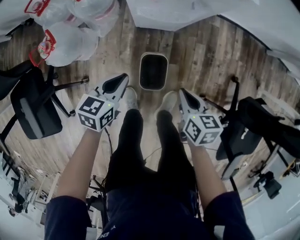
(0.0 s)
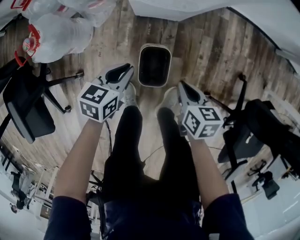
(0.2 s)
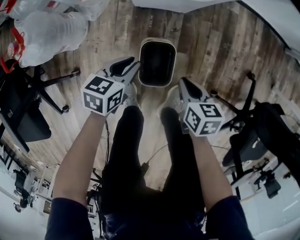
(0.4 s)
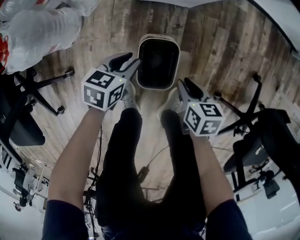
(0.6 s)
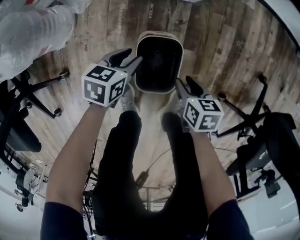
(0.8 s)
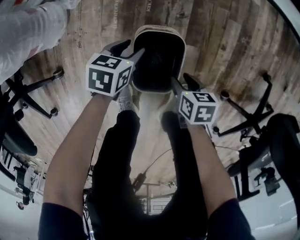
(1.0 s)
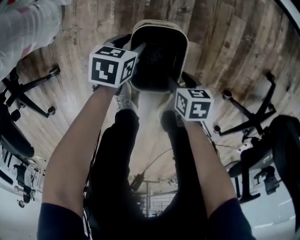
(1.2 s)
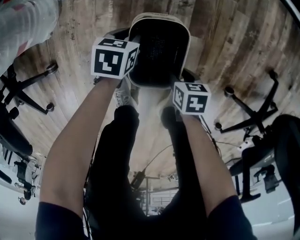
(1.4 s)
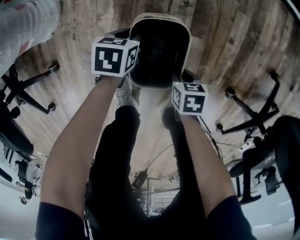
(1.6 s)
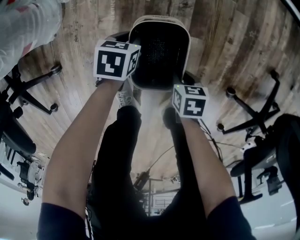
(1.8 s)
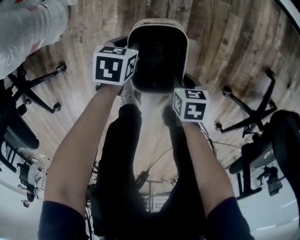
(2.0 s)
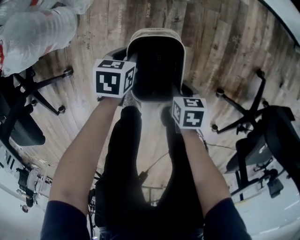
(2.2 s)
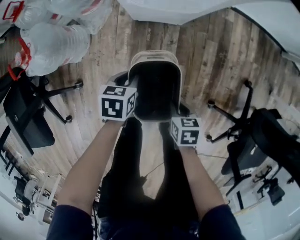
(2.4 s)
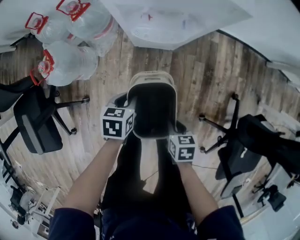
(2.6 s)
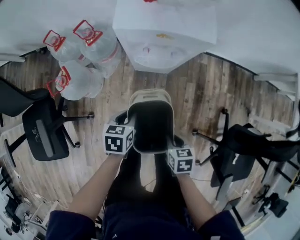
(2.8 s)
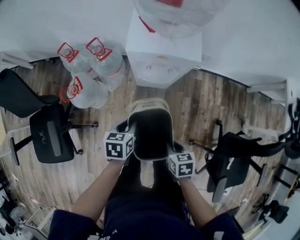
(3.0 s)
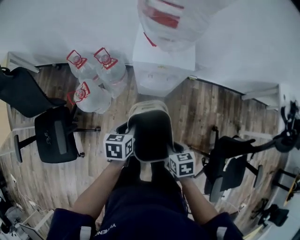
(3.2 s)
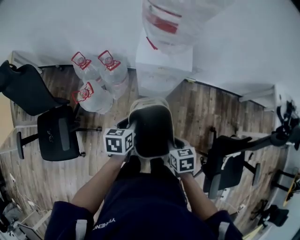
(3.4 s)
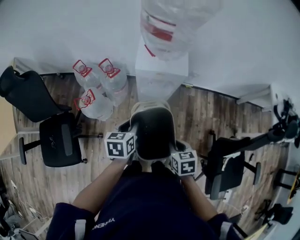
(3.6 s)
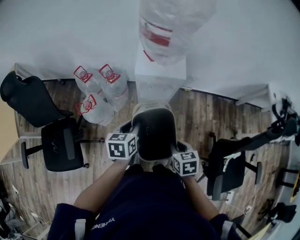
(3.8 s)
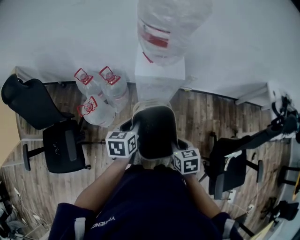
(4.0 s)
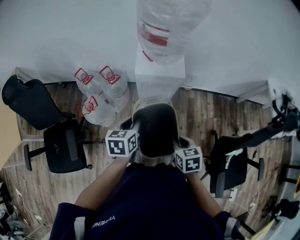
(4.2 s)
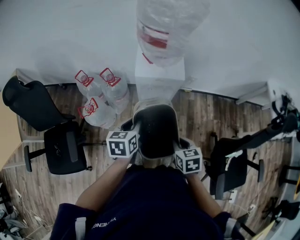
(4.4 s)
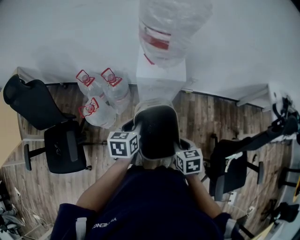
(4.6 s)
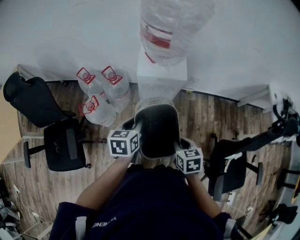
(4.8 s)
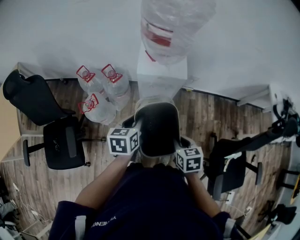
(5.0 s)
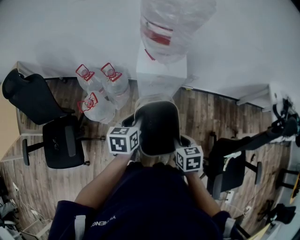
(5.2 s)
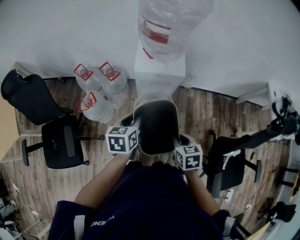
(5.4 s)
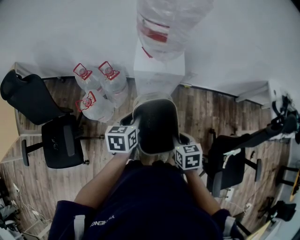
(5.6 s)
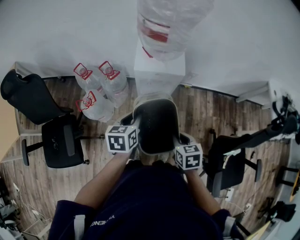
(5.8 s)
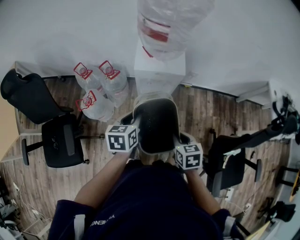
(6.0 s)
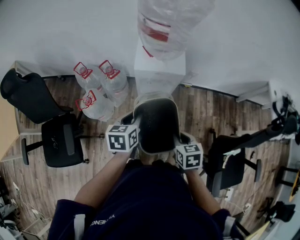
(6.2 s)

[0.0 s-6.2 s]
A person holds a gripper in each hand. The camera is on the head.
0.0 to 1.6 s: The two grippers go some 50 cm downward. The right gripper changes its angle by roughly 30 degrees, and opens and closes again, while the left gripper turns by approximately 30 degrees, and opens, then closes once more.
1.6 to 3.2 s: Both grippers move upward, approximately 70 cm. The right gripper rotates approximately 20 degrees; the left gripper swivels approximately 20 degrees.
3.2 to 4.6 s: The grippers both shift upward by some 15 cm.
4.6 to 6.2 s: The grippers move only a little.

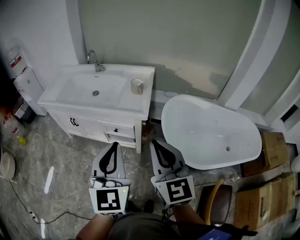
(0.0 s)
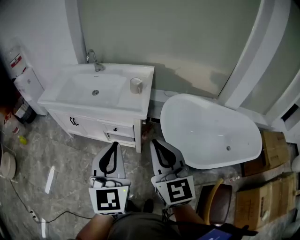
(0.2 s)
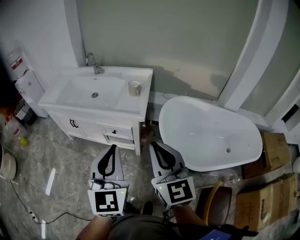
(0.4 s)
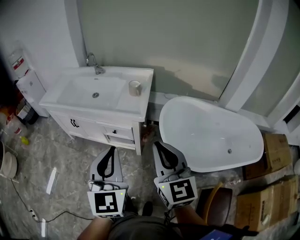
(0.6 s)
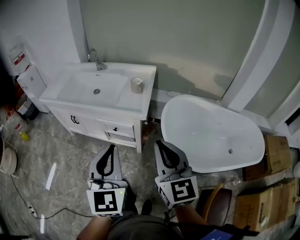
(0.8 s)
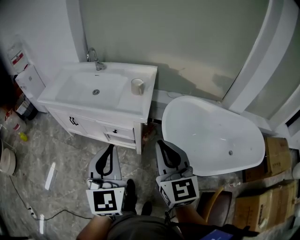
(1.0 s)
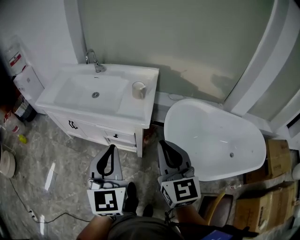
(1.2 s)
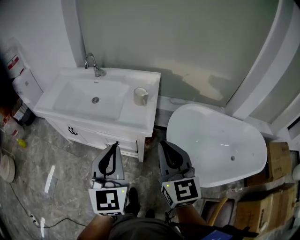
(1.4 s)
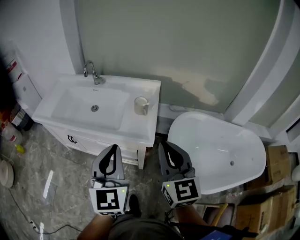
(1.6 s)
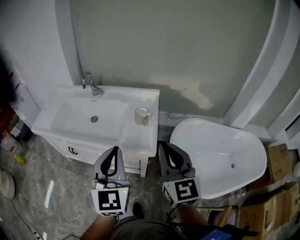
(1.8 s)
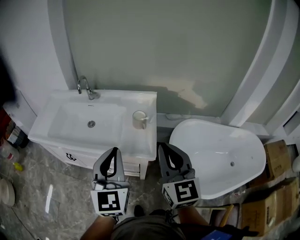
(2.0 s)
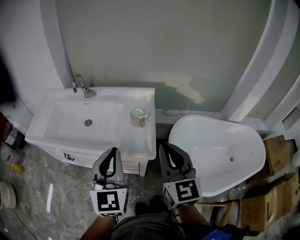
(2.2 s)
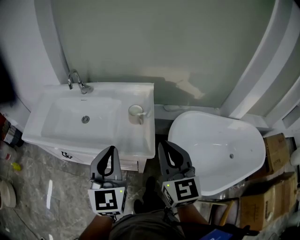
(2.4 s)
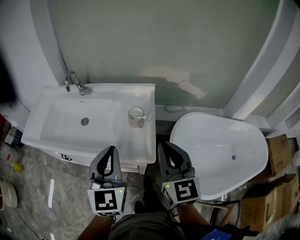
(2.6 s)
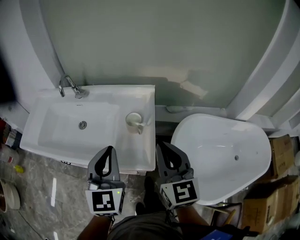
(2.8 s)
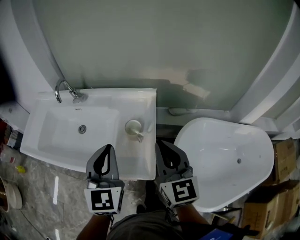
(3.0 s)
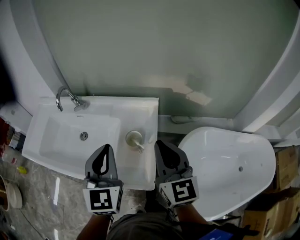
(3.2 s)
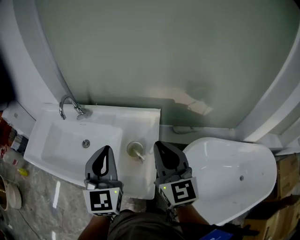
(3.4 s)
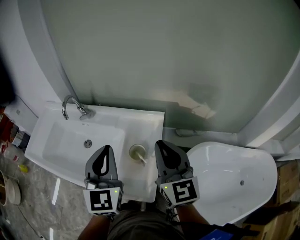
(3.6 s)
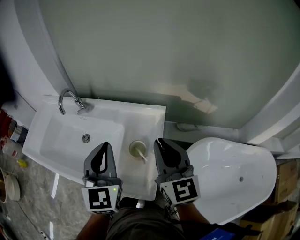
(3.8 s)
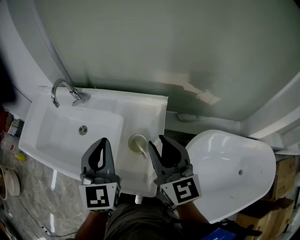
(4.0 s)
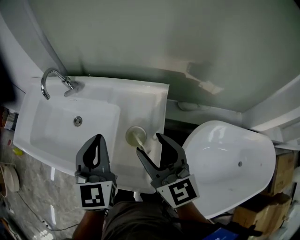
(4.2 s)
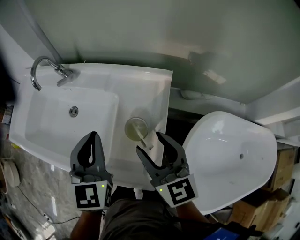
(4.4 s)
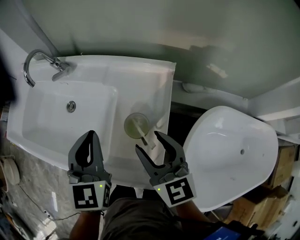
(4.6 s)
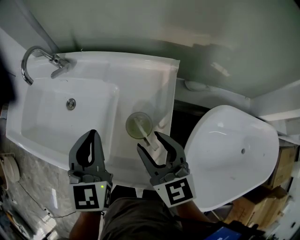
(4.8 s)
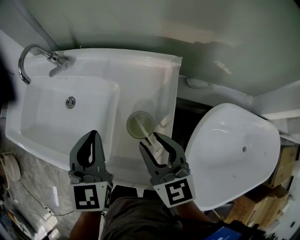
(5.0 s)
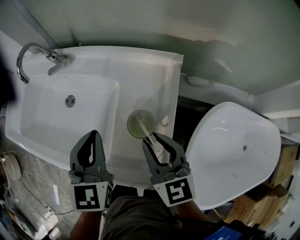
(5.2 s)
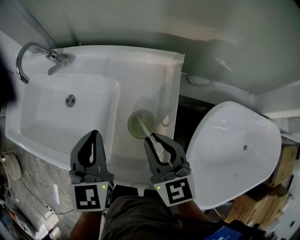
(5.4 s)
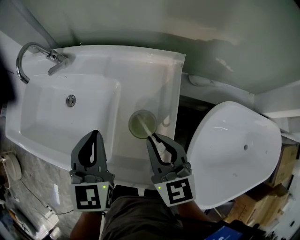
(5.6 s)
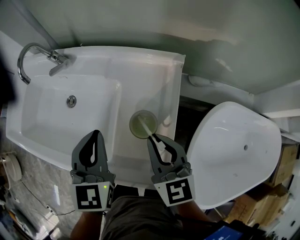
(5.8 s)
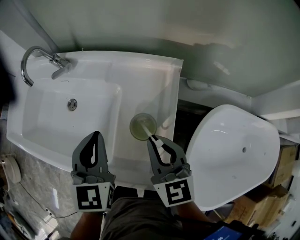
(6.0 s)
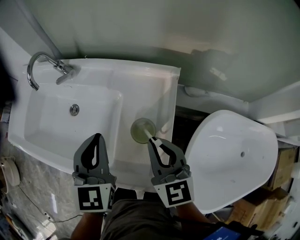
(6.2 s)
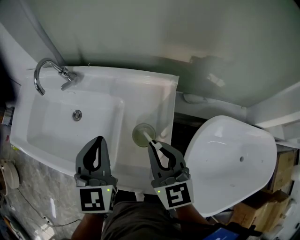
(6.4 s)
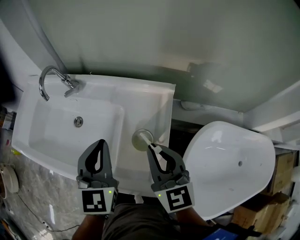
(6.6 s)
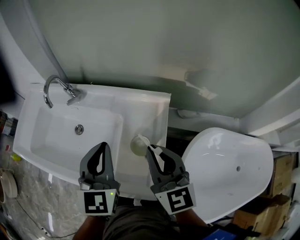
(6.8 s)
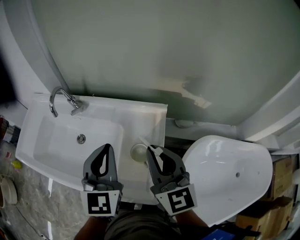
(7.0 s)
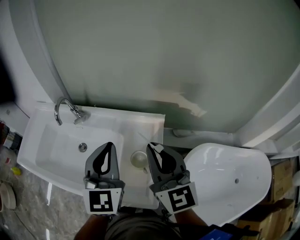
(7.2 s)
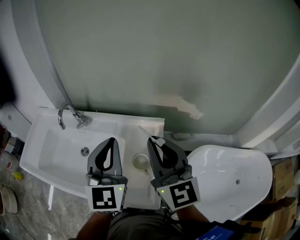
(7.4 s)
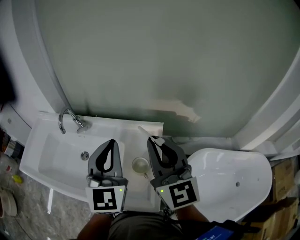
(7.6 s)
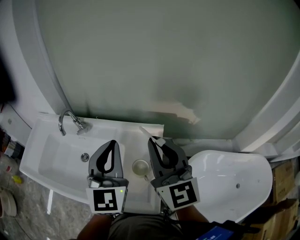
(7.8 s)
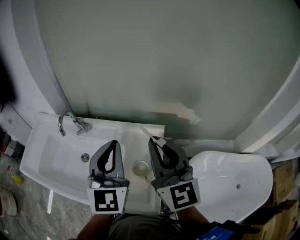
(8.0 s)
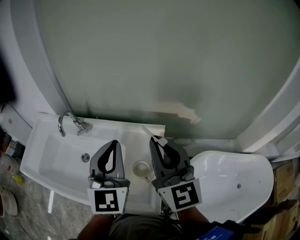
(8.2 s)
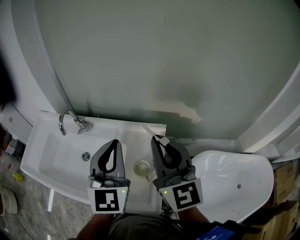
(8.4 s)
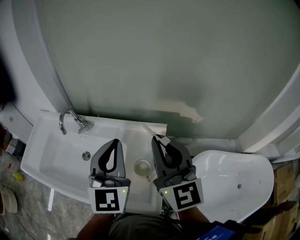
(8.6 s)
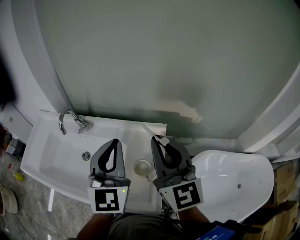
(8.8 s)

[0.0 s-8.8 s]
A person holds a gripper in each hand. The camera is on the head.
0.0 to 1.4 s: Both grippers travel together forward, roughly 15 cm.
1.4 to 3.0 s: Both grippers move forward, roughly 30 cm.
3.0 to 4.4 s: The grippers both shift forward and downward by some 15 cm. The right gripper opens its fingers.
4.4 to 5.8 s: The grippers both shift downward by approximately 5 cm. The right gripper closes up.
5.8 to 7.4 s: The two grippers go roughly 25 cm upward. The right gripper changes its angle by some 30 degrees. The left gripper swivels roughly 20 degrees.
7.4 to 8.8 s: There are only small adjustments of the grippers.

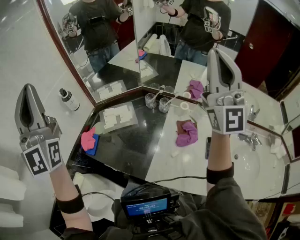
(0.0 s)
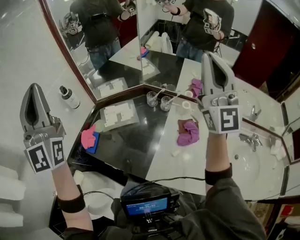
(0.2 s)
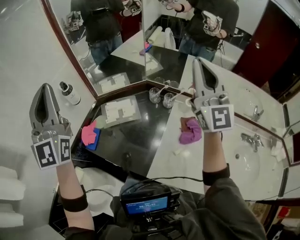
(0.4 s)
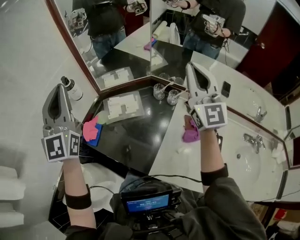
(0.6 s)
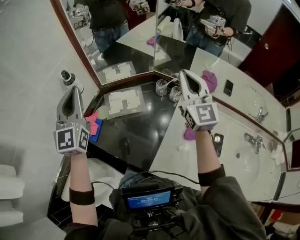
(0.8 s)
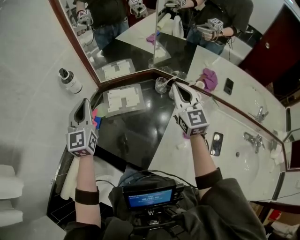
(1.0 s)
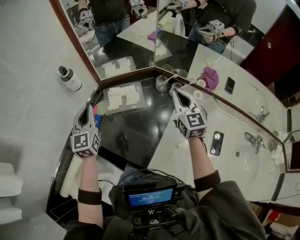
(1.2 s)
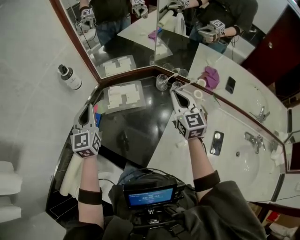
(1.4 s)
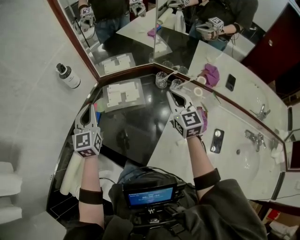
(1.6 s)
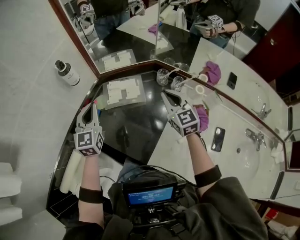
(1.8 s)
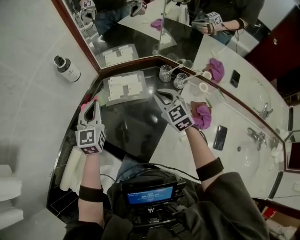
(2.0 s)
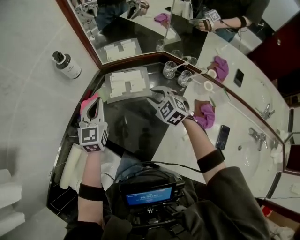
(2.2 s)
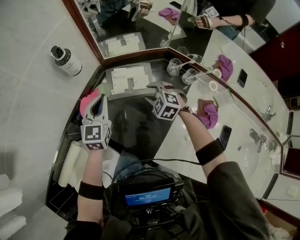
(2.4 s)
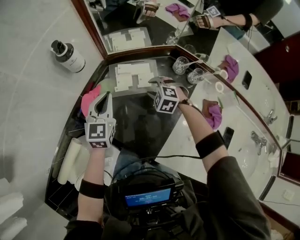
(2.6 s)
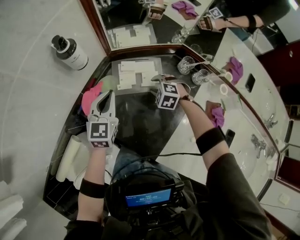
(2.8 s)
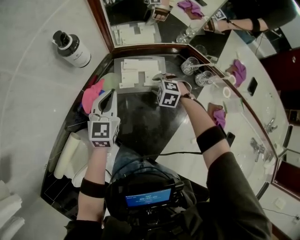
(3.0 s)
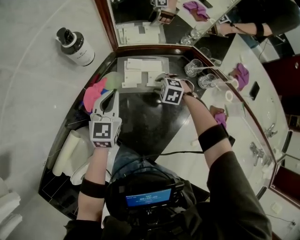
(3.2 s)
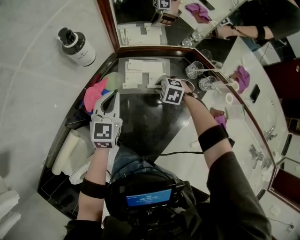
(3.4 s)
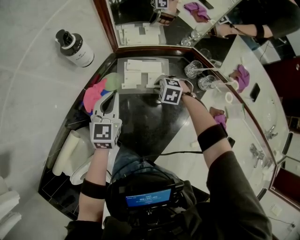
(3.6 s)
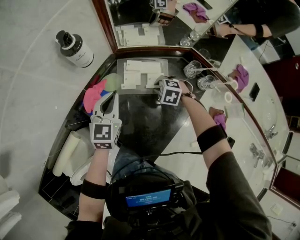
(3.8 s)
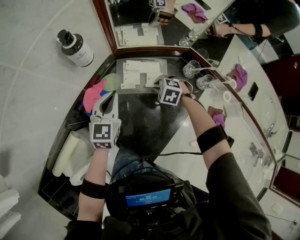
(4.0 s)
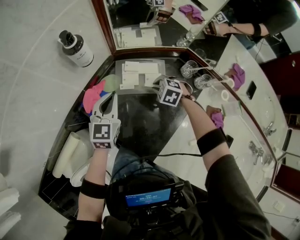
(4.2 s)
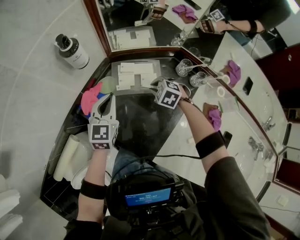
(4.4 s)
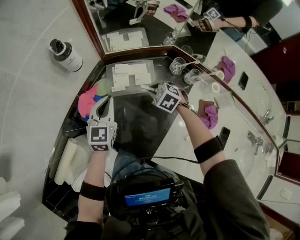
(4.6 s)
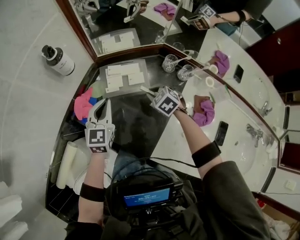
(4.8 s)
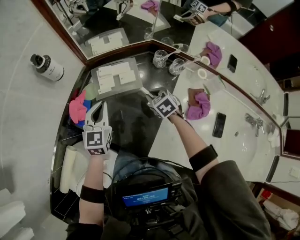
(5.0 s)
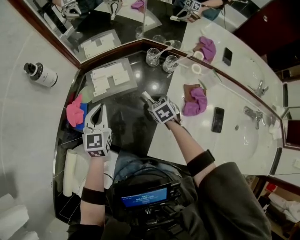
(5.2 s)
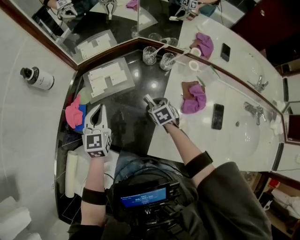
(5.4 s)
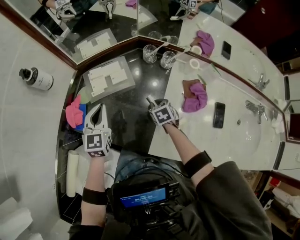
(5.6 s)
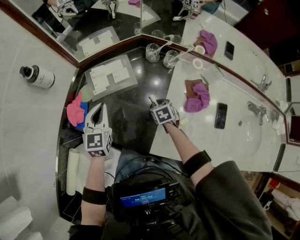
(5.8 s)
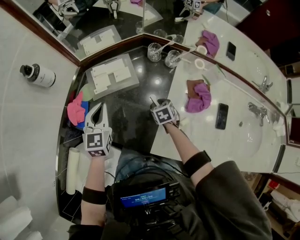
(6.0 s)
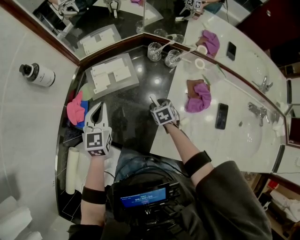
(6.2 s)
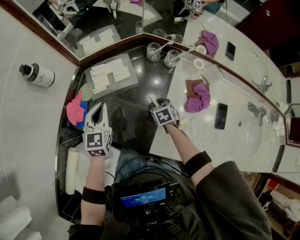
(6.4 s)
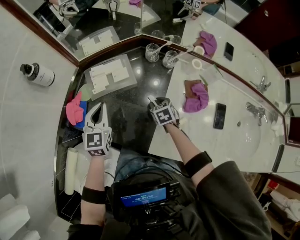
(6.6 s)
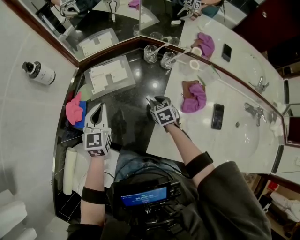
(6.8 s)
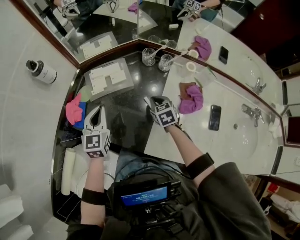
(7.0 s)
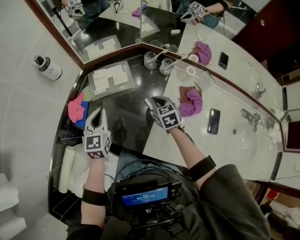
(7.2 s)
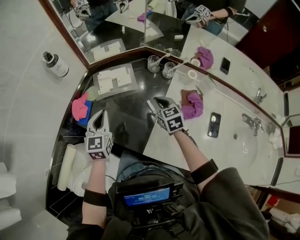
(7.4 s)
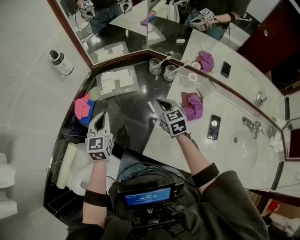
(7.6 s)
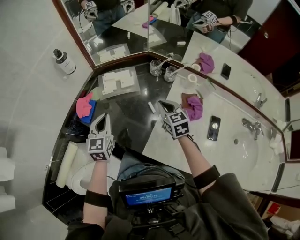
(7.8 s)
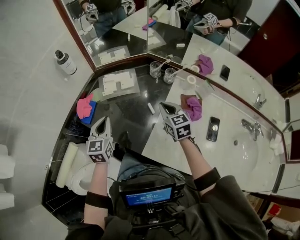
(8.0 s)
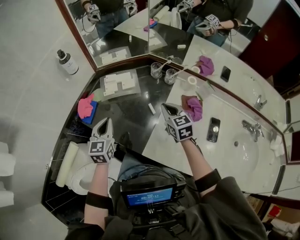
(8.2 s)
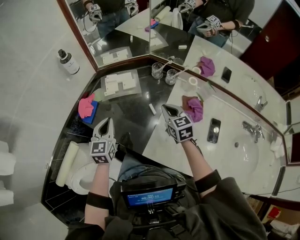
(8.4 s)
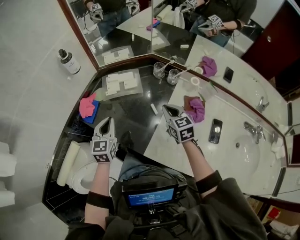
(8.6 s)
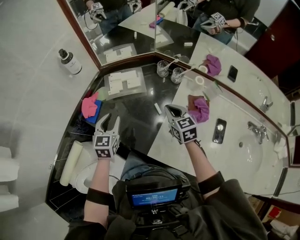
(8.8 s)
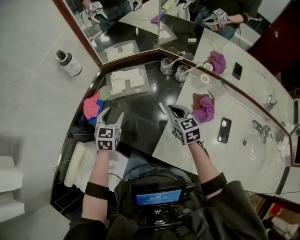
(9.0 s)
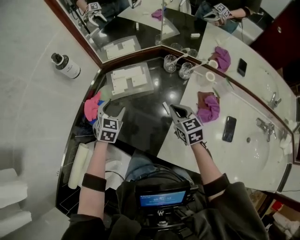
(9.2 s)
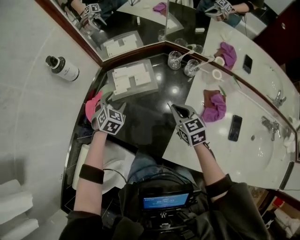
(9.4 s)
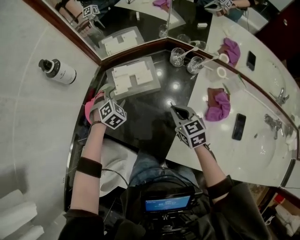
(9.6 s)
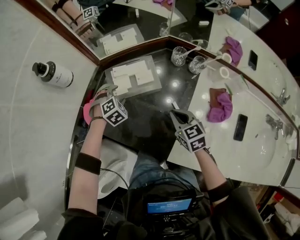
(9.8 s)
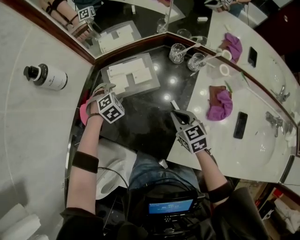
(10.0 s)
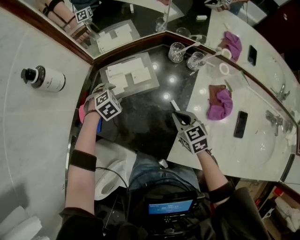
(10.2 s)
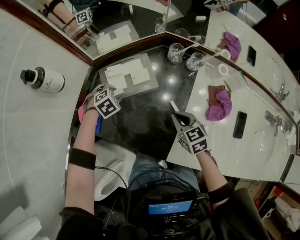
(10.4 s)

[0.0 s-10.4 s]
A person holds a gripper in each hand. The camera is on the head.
0.0 to 1.4 s: The grippers both shift downward by some 35 cm. The right gripper tilts its fingers approximately 50 degrees downward, while the left gripper tilts its fingers roughly 50 degrees downward.
1.4 to 3.0 s: The left gripper goes about 15 cm downward, while the right gripper shifts about 35 cm downward and to the left, tips its fingers downward by approximately 60 degrees, and opens its fingers.
3.0 to 4.4 s: The right gripper goes roughly 5 cm upward.
4.4 to 6.0 s: The left gripper heads to the right, covering approximately 5 cm. The right gripper goes some 20 cm backward, to the right and downward, and rolls clockwise, seen from behind, by approximately 60 degrees.
6.0 to 7.4 s: The left gripper goes approximately 5 cm backward. Meanwhile the right gripper moves upward, roughly 20 cm, and turns by some 30 degrees.
7.4 to 9.0 s: The left gripper travels backward and back again, about 5 cm each way, and opens up.
9.0 to 10.4 s: The right gripper heads downward, covering roughly 10 cm. The left gripper travels downward by approximately 20 cm, and points its fingers some 40 degrees further downward.
